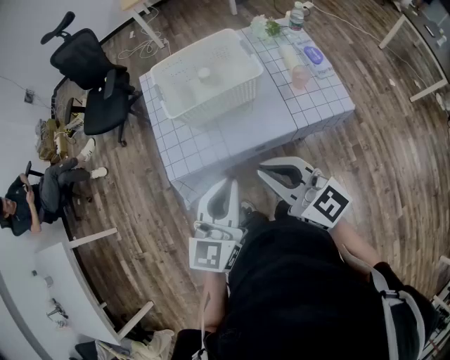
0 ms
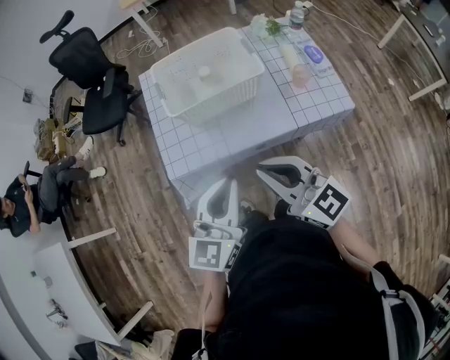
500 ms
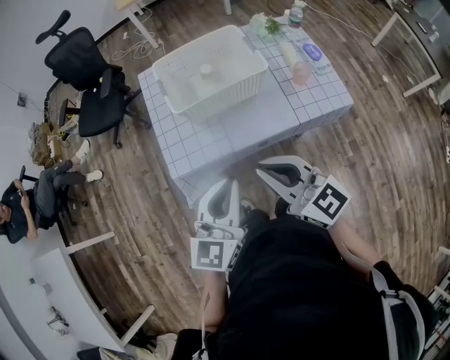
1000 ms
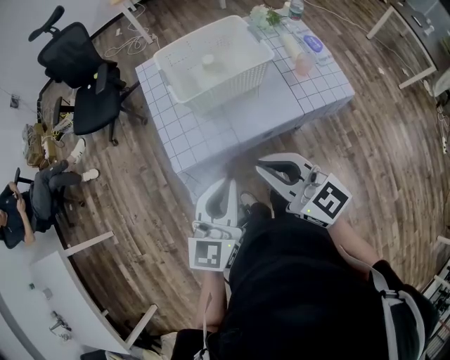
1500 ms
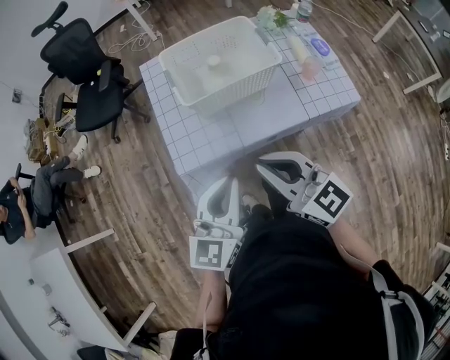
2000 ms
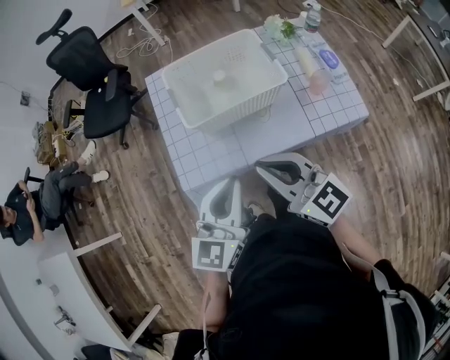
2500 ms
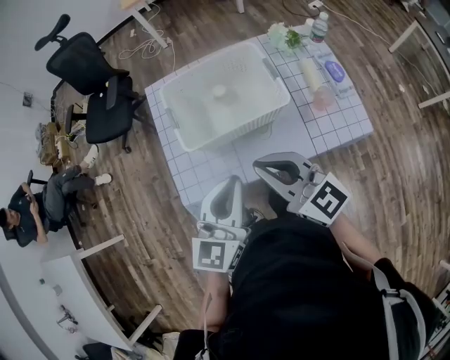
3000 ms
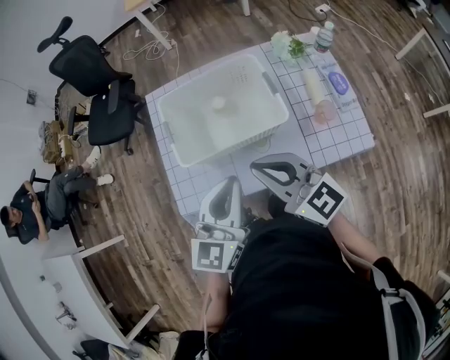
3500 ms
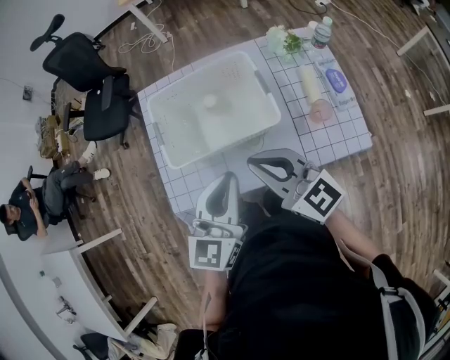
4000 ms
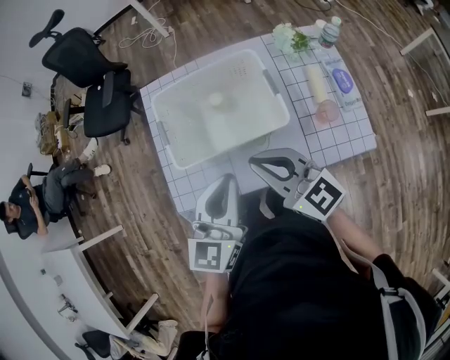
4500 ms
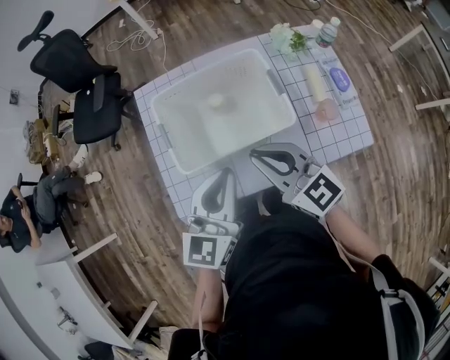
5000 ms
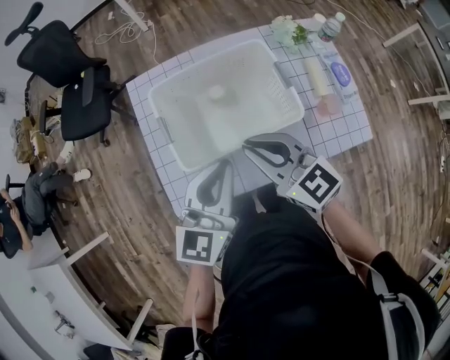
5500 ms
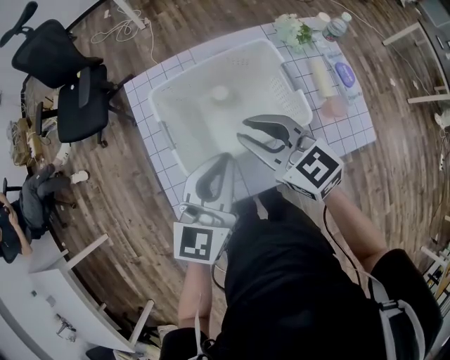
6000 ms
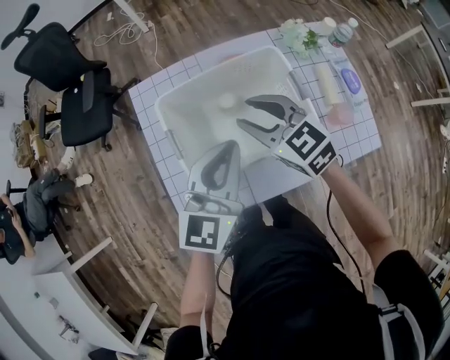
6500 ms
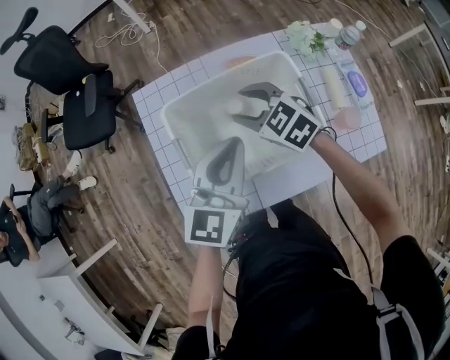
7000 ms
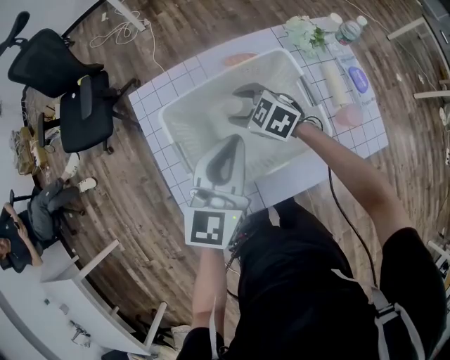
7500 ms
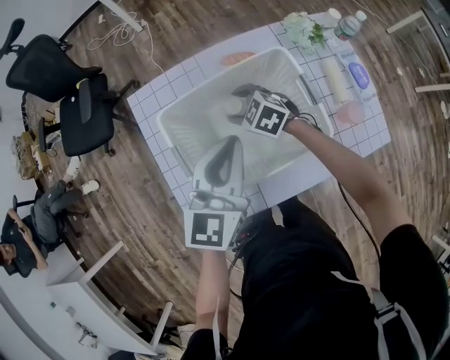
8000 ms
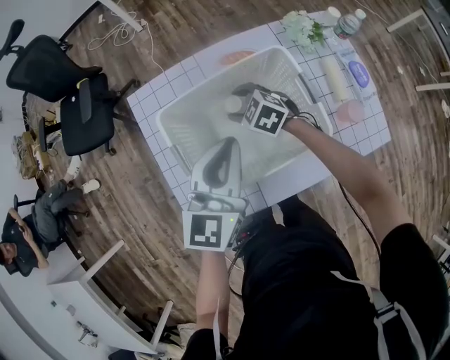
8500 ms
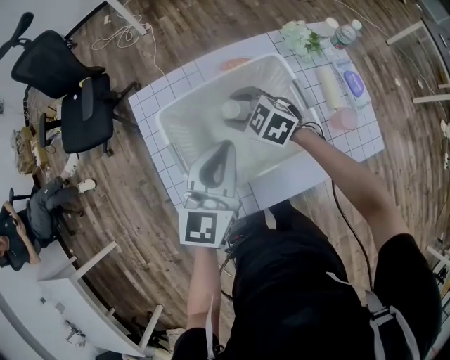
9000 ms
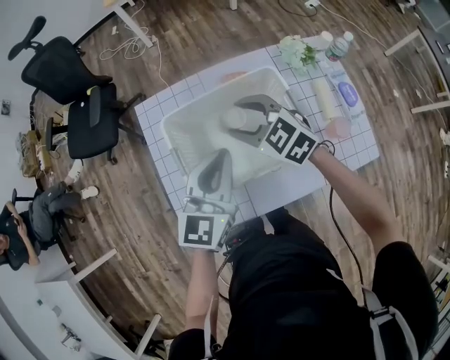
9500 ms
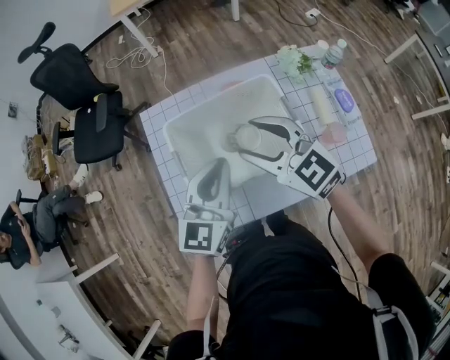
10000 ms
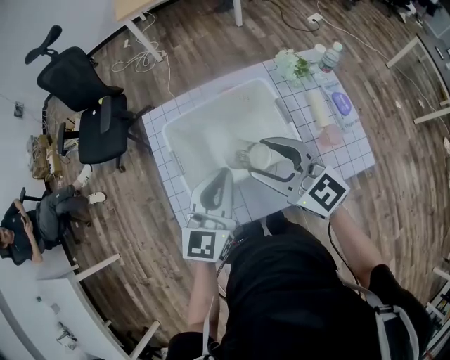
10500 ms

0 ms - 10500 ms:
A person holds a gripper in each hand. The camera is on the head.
0 ms - 2000 ms: Both grippers move to the left, roughly 10 cm.
2000 ms - 4000 ms: Both grippers move forward and to the right, about 20 cm.
4000 ms - 6500 ms: The left gripper moves forward, about 15 cm. Meanwhile the right gripper goes some 20 cm forward and downward, changes its angle by approximately 30 degrees, and opens.
6500 ms - 8500 ms: The right gripper moves downward and forward, about 20 cm, and rotates some 30 degrees. The left gripper shifts by roughly 5 cm.
8500 ms - 10500 ms: The right gripper travels upward and backward by some 30 cm, and tilts its fingers some 50 degrees upward. The left gripper heads backward, covering some 10 cm.

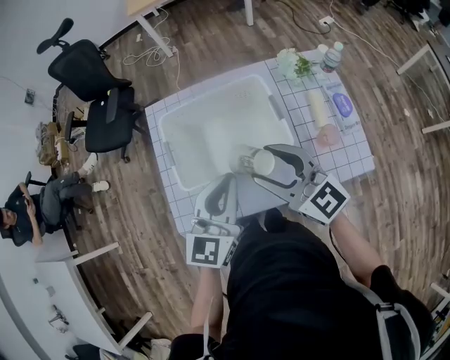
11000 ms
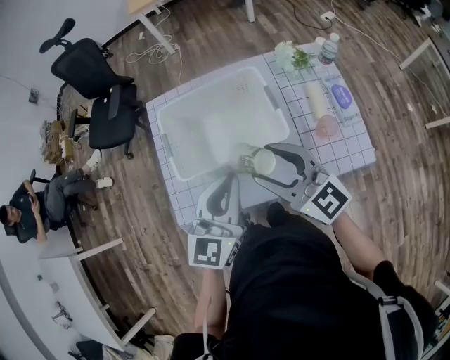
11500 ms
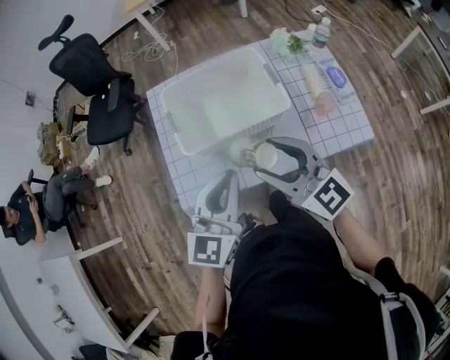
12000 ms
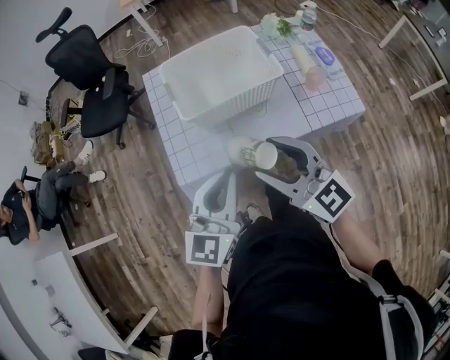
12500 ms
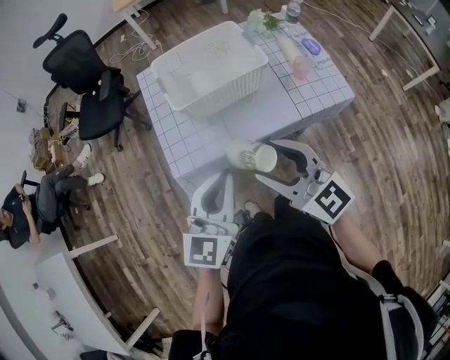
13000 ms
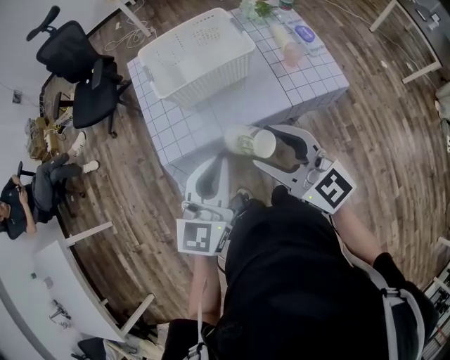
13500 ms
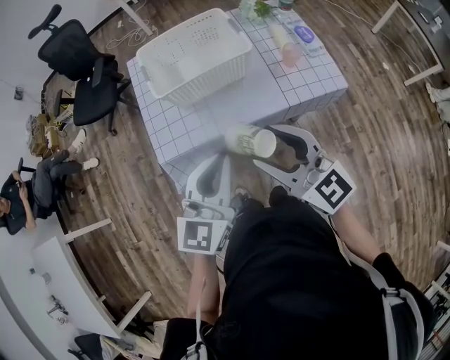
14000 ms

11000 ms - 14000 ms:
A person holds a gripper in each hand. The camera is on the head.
11000 ms - 12500 ms: The grippers both shift backward and to the left by some 20 cm.
12500 ms - 14000 ms: Both grippers move backward and to the right, roughly 10 cm.

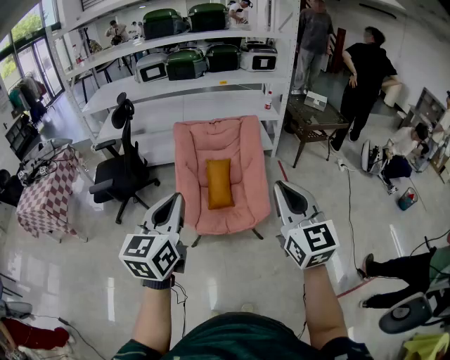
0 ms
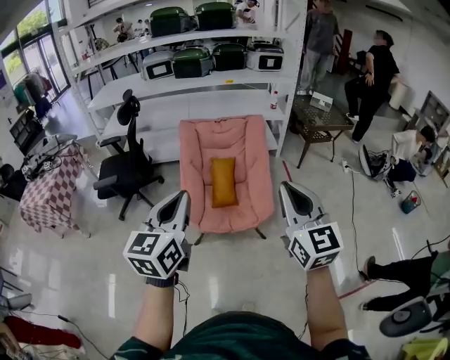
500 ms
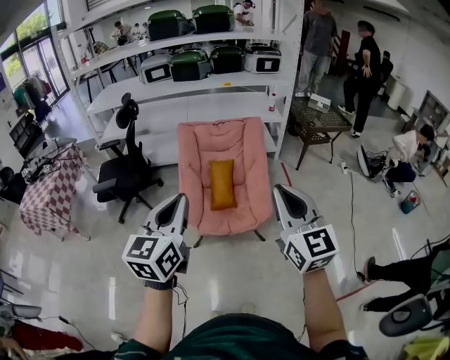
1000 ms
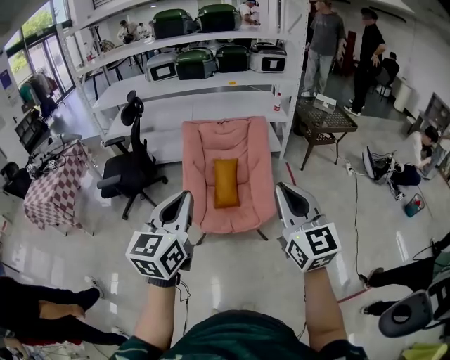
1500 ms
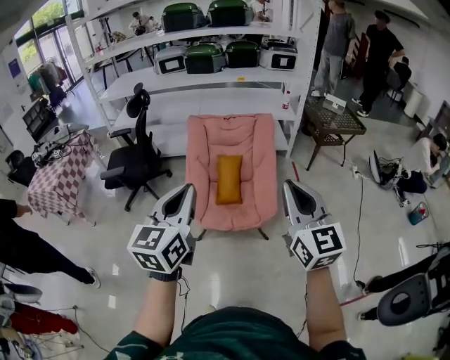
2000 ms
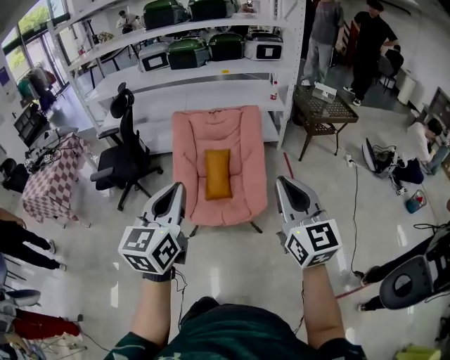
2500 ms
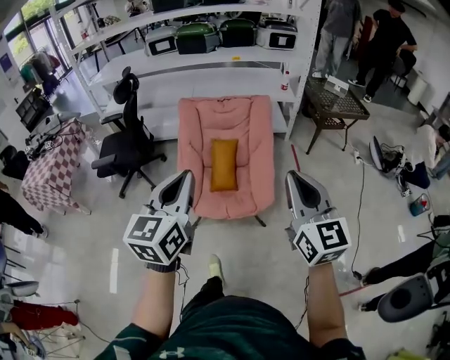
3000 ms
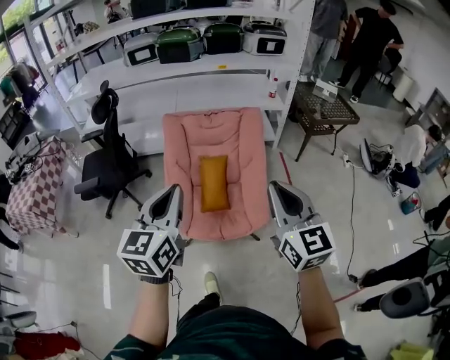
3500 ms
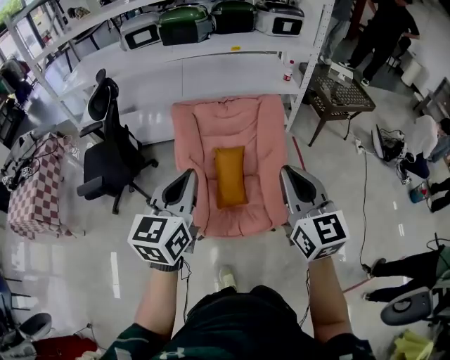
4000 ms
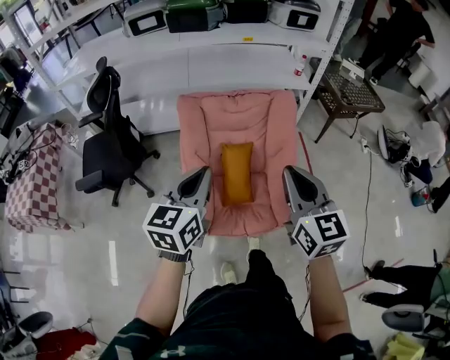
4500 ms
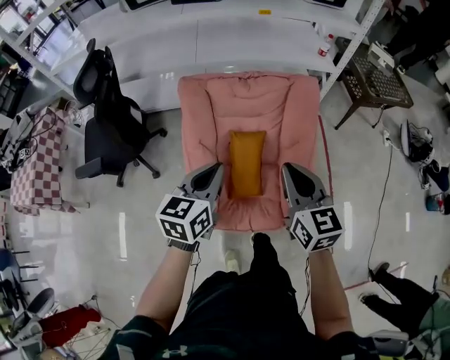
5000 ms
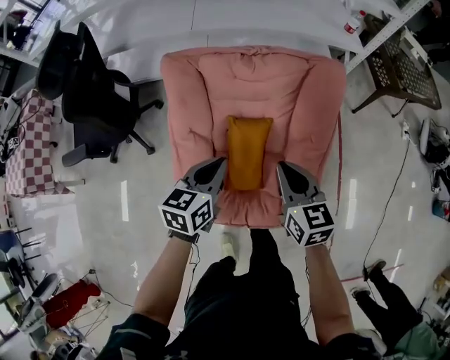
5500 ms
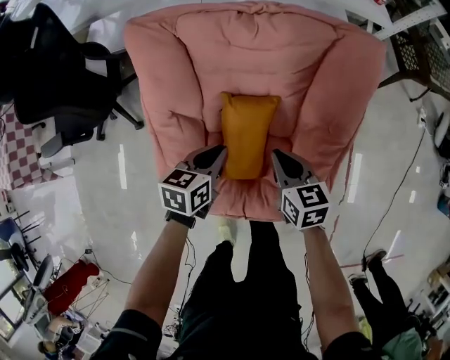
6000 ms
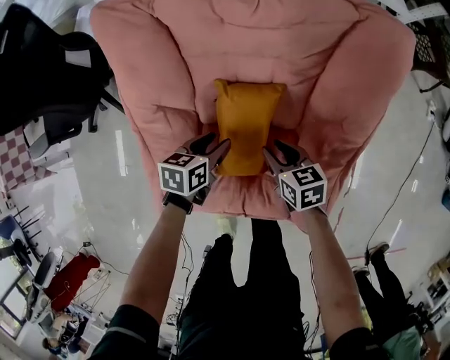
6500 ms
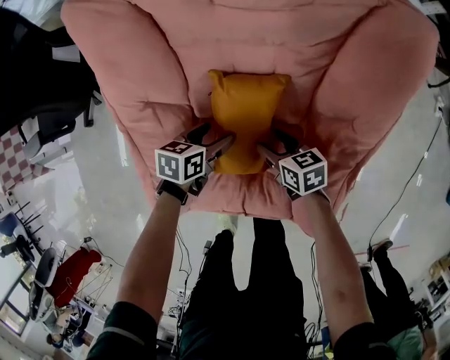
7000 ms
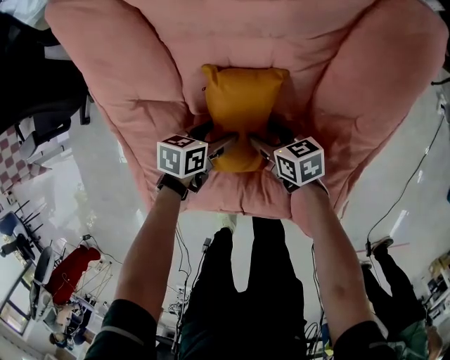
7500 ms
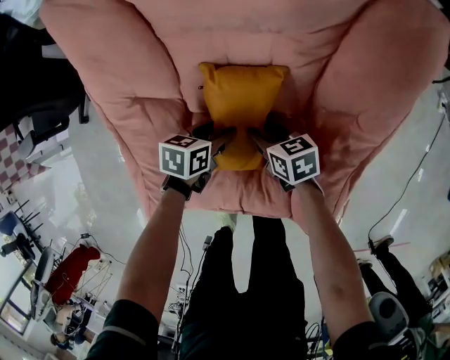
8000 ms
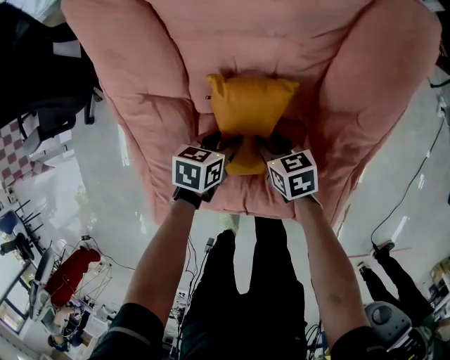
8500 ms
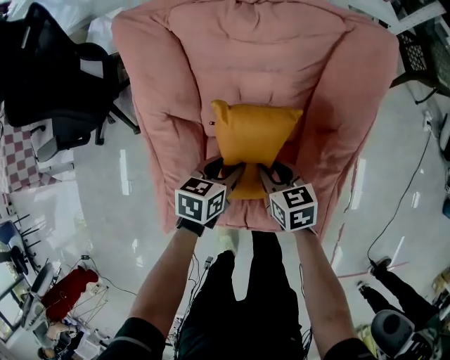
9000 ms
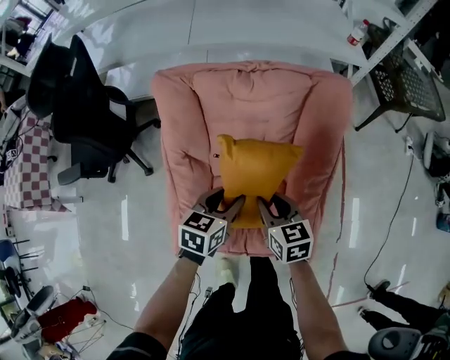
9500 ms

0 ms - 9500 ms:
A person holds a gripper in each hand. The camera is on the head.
0 ms - 2000 ms: There are only small adjustments of the grippers.
2000 ms - 4000 ms: Both grippers travel together forward, about 30 cm.
4000 ms - 5500 ms: Both grippers travel together downward and forward, some 40 cm. The left gripper rotates approximately 30 degrees. Meanwhile the right gripper swivels some 30 degrees.
5500 ms - 7500 ms: The grippers both shift downward by approximately 40 cm. The left gripper swivels approximately 30 degrees, and opens. The right gripper swivels some 40 degrees, and opens its fingers.
7500 ms - 9500 ms: The grippers both shift upward by about 30 cm. The left gripper swivels roughly 20 degrees, and closes up. The right gripper turns by some 30 degrees, and closes up.

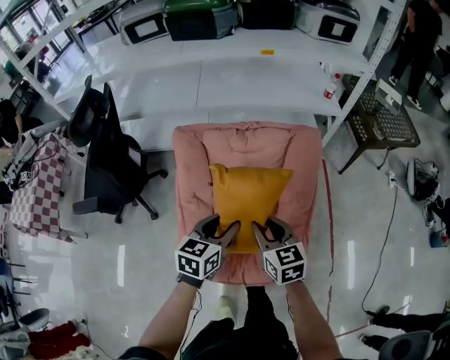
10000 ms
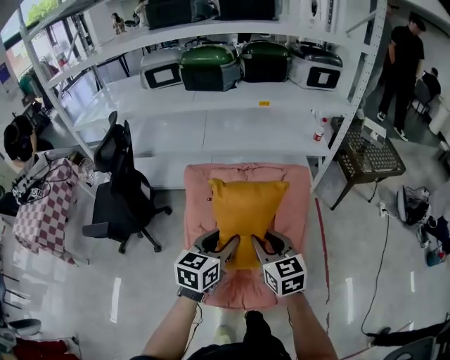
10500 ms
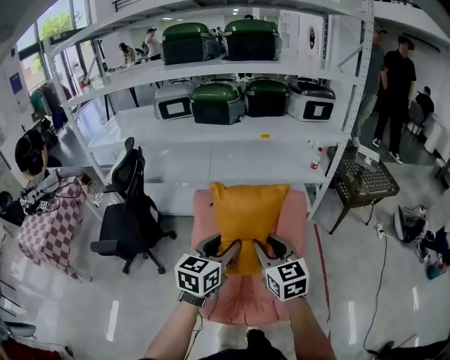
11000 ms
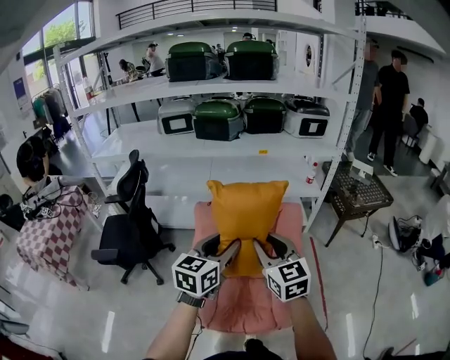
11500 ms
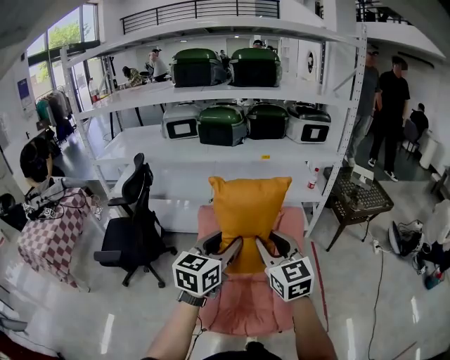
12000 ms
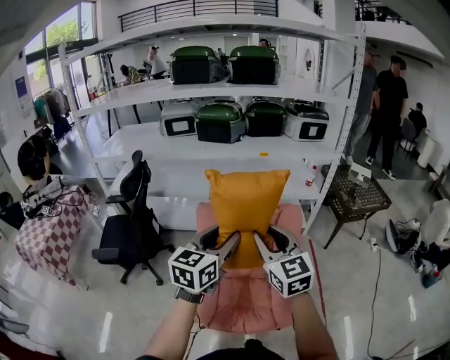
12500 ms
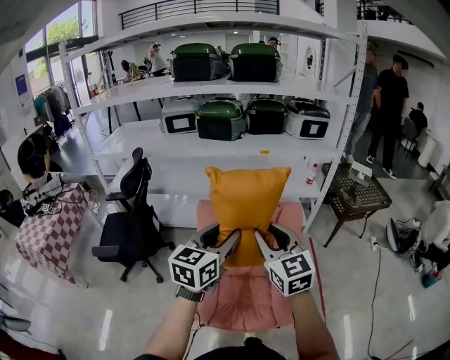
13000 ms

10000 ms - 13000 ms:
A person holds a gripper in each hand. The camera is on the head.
10000 ms - 11500 ms: The grippers both shift upward by about 25 cm. The right gripper rotates some 20 degrees; the left gripper swivels roughly 20 degrees.
11500 ms - 13000 ms: The grippers stay close to where they were, moving slightly.
